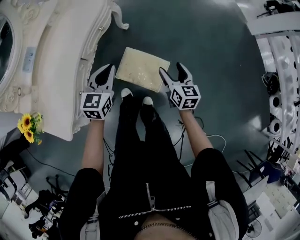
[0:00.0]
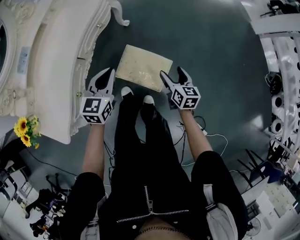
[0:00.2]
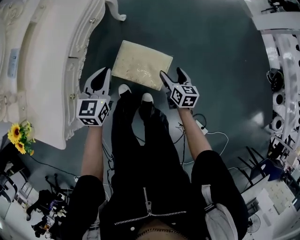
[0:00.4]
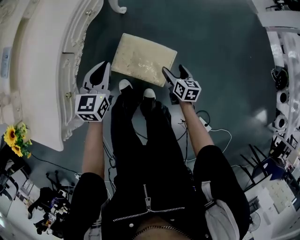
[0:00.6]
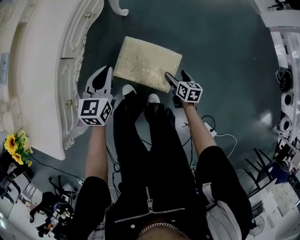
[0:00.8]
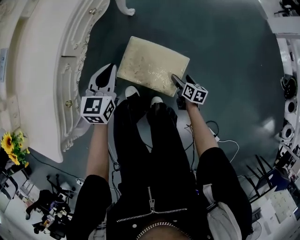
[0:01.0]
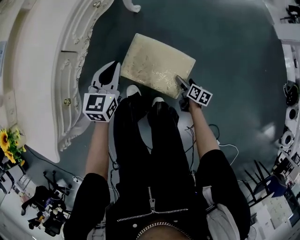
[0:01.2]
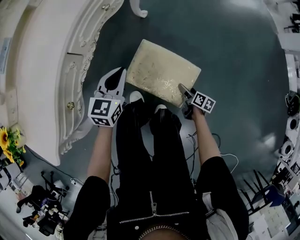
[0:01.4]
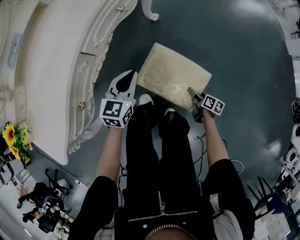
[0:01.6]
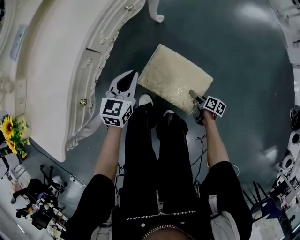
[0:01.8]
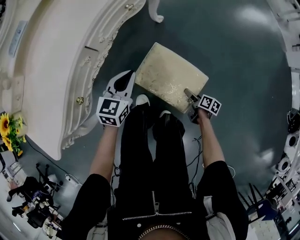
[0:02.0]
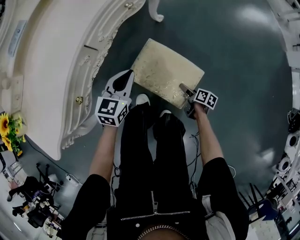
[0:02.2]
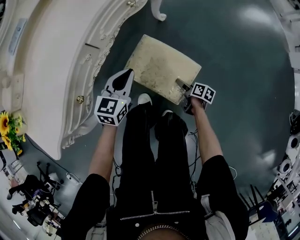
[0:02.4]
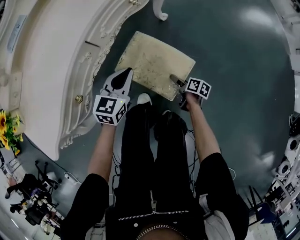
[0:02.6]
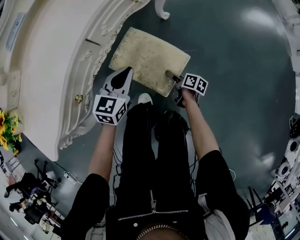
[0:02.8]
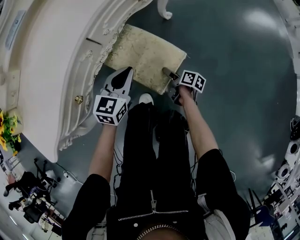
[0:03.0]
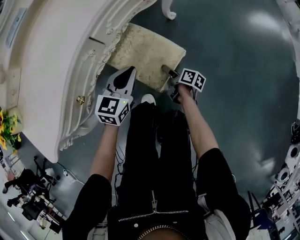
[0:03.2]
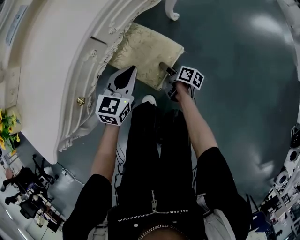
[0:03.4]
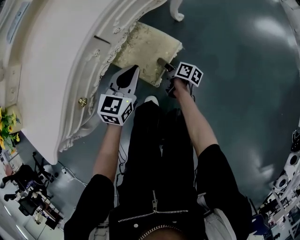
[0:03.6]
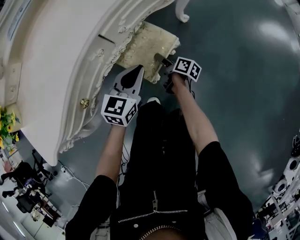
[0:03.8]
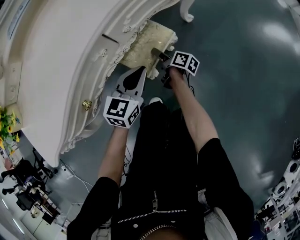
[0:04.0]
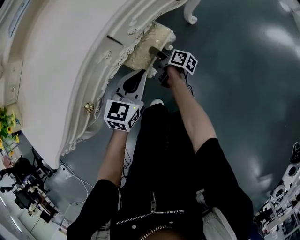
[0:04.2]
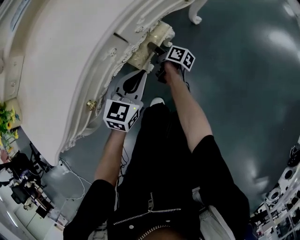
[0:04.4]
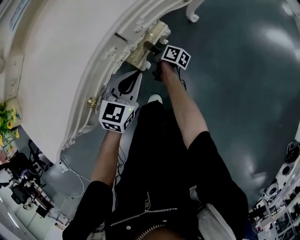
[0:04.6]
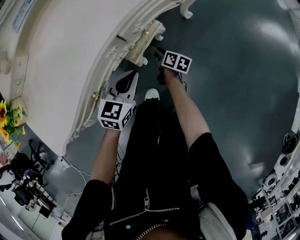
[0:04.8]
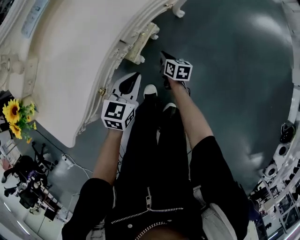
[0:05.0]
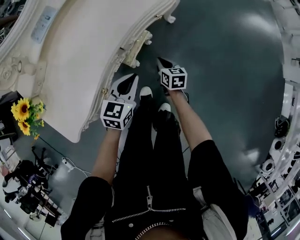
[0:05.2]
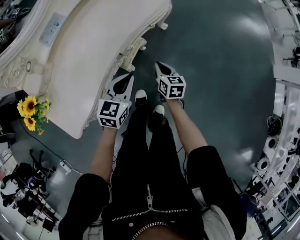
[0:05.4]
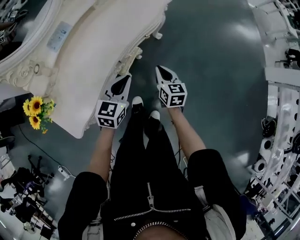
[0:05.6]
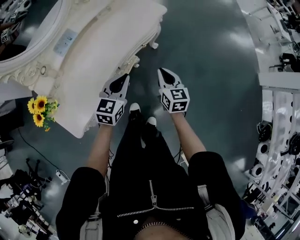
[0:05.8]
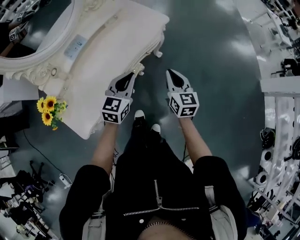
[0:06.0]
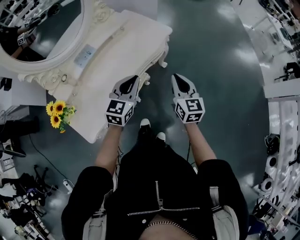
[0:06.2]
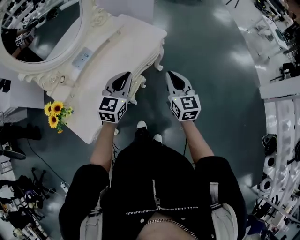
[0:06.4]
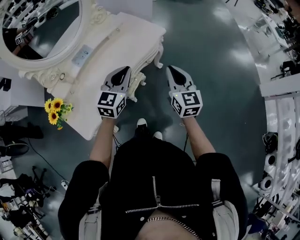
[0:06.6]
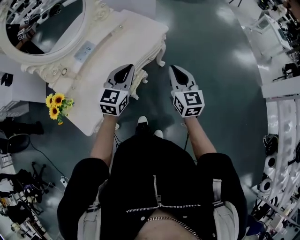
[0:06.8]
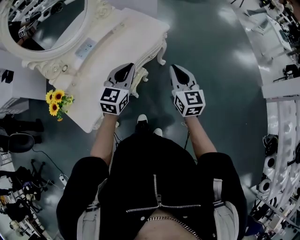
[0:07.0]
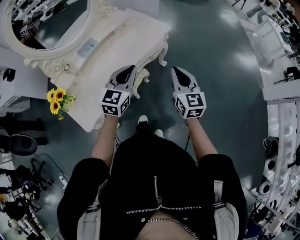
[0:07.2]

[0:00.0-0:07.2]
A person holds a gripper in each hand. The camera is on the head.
0:00.0 to 0:01.4: The right gripper heads downward, covering some 40 cm, and rotates approximately 40 degrees. Meanwhile the left gripper moves downward, about 25 cm.
0:01.4 to 0:02.8: The right gripper is displaced to the left and forward by roughly 20 cm. Meanwhile the left gripper heads to the left, covering some 5 cm.
0:02.8 to 0:04.4: The right gripper moves forward and to the left, approximately 30 cm, while the left gripper is displaced to the left by some 5 cm.
0:04.4 to 0:05.8: The grippers both shift upward by approximately 40 cm. The right gripper rotates around the line of its fingers by approximately 60 degrees, counterclockwise from behind, and closes up.
0:05.8 to 0:07.2: The grippers both shift upward by some 15 cm.

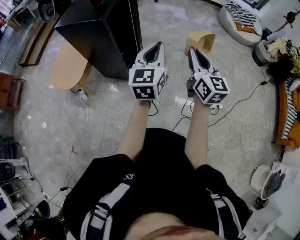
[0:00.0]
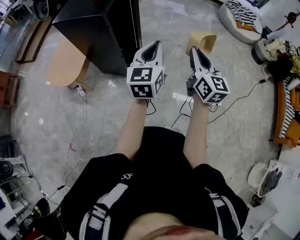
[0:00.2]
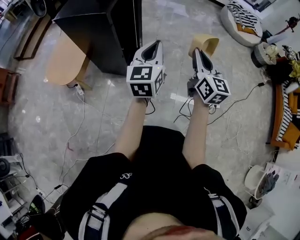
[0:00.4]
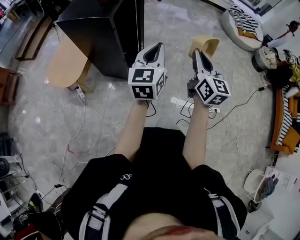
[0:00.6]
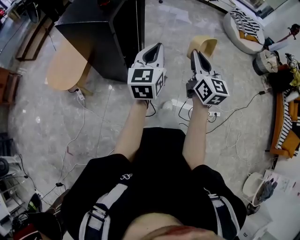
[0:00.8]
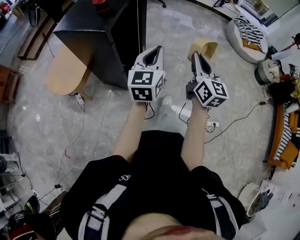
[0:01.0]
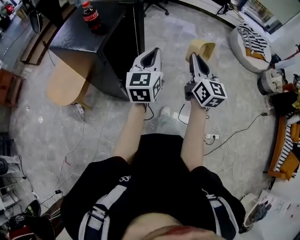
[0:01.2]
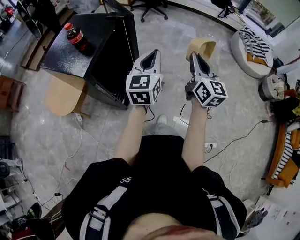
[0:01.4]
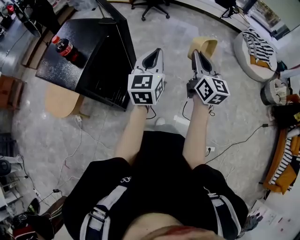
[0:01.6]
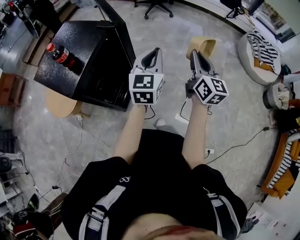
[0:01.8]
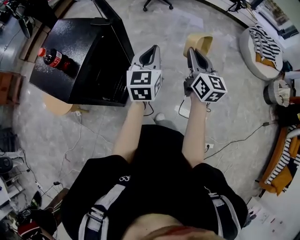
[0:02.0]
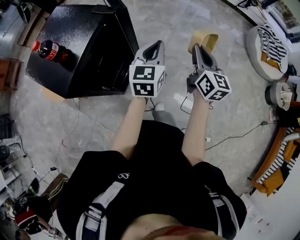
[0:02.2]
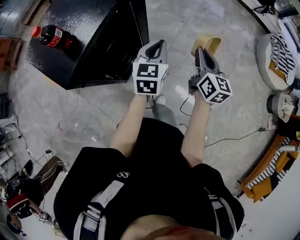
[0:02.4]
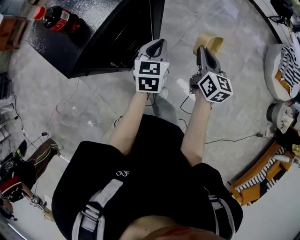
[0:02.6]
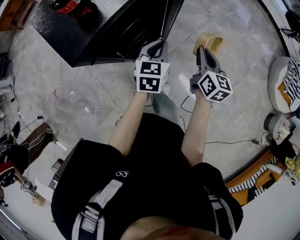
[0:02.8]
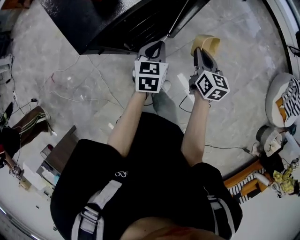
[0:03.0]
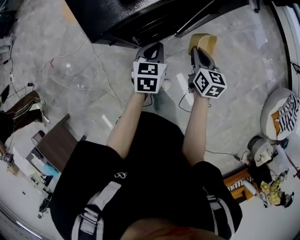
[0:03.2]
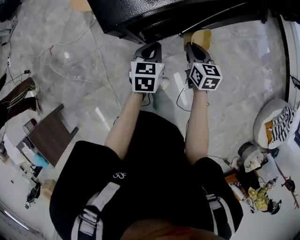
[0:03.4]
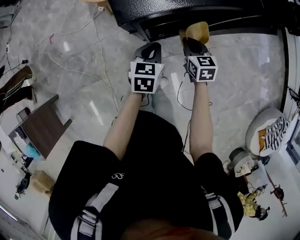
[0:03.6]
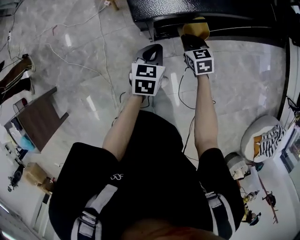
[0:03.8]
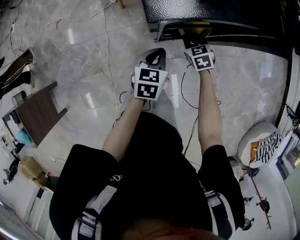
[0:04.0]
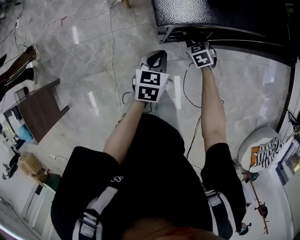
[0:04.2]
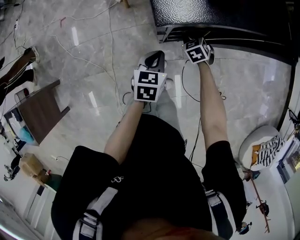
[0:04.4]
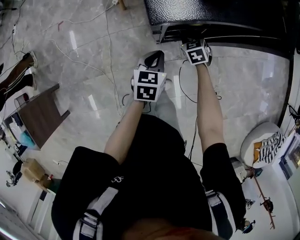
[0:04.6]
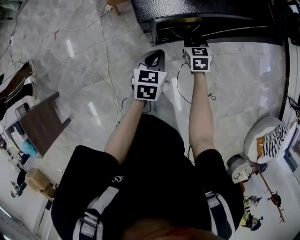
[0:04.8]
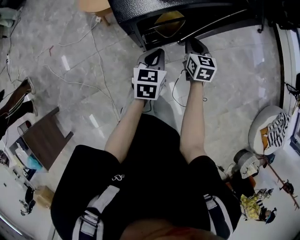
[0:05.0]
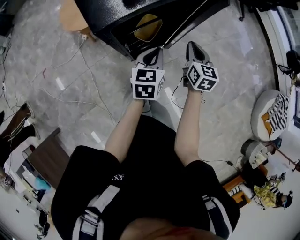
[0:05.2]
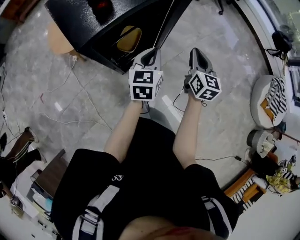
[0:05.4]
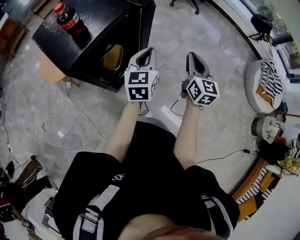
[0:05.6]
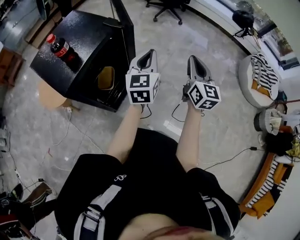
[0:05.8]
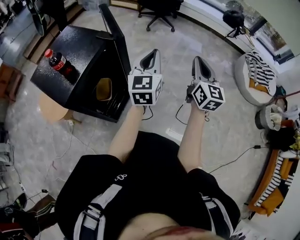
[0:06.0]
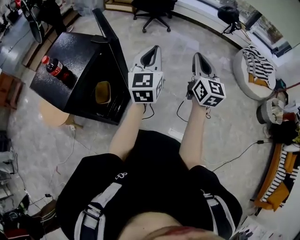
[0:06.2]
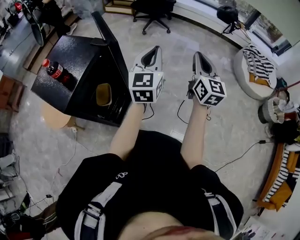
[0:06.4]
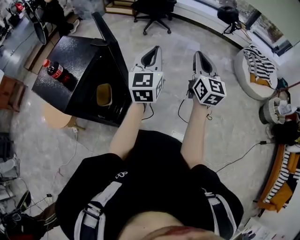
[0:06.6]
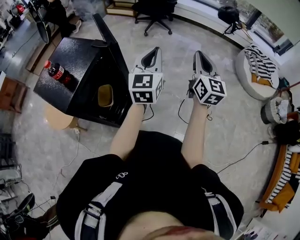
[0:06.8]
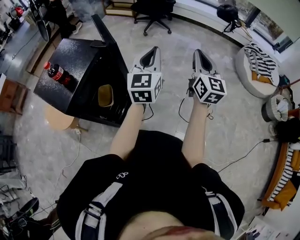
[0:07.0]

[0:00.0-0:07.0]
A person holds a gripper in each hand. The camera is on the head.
0:00.0 to 0:01.4: The grippers both shift forward by about 35 cm.
0:01.4 to 0:02.8: Both grippers move downward, forward and to the left, some 30 cm. The left gripper changes its angle by approximately 40 degrees. The right gripper rotates about 40 degrees.
0:02.8 to 0:04.2: The left gripper shifts by roughly 25 cm, and rotates some 30 degrees; the right gripper shifts by some 40 cm, and tilts its fingers some 30 degrees downward.
0:04.2 to 0:05.6: The left gripper moves roughly 35 cm, and changes its angle by some 40 degrees, while the right gripper shifts by about 50 cm, and points its fingers roughly 40 degrees further upward.
0:05.6 to 0:07.0: The right gripper heads to the right and upward, covering approximately 20 cm, and swivels some 20 degrees, while the left gripper travels upward and to the right by roughly 20 cm, and swivels some 30 degrees.

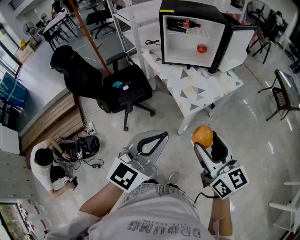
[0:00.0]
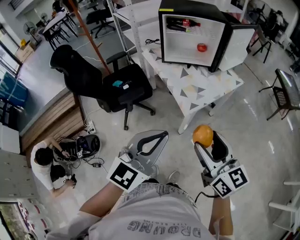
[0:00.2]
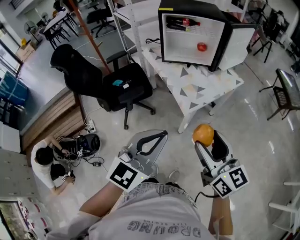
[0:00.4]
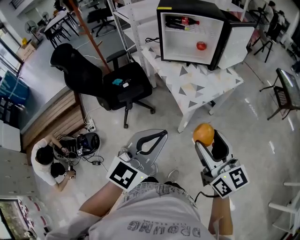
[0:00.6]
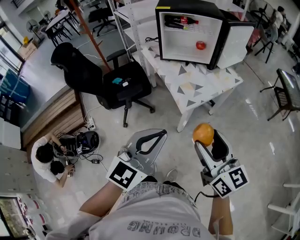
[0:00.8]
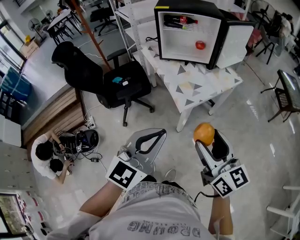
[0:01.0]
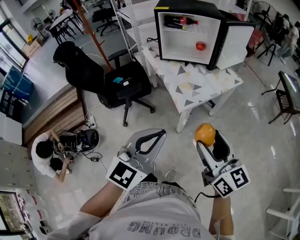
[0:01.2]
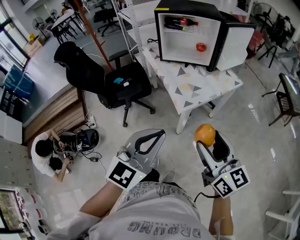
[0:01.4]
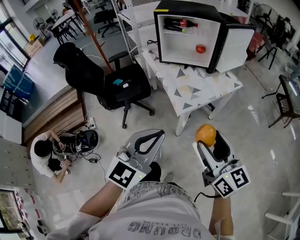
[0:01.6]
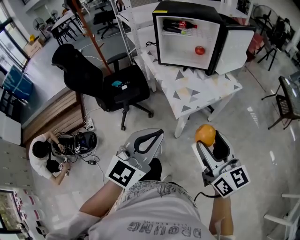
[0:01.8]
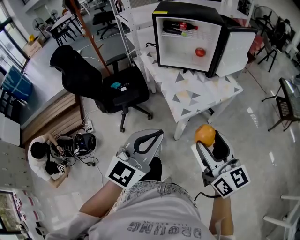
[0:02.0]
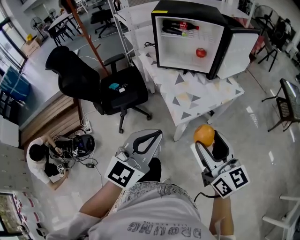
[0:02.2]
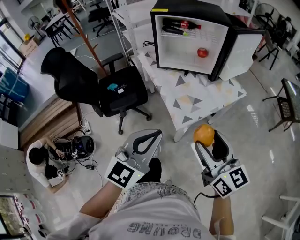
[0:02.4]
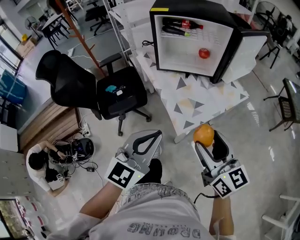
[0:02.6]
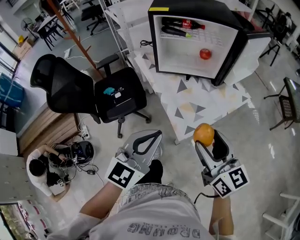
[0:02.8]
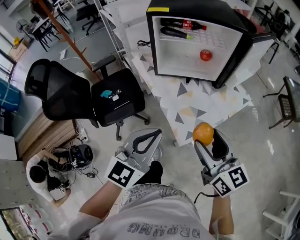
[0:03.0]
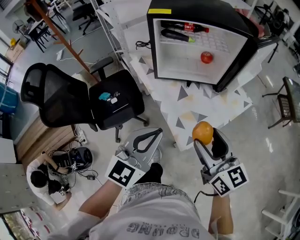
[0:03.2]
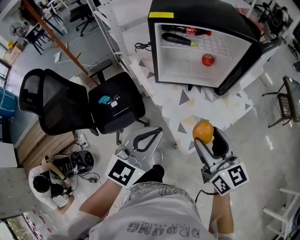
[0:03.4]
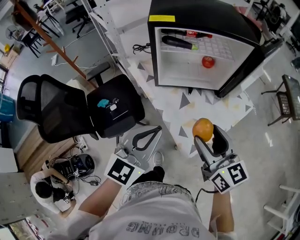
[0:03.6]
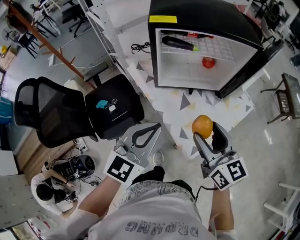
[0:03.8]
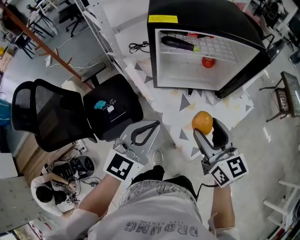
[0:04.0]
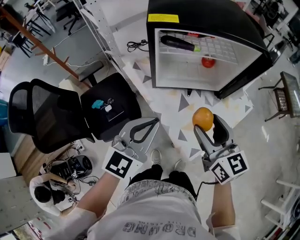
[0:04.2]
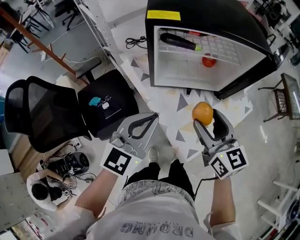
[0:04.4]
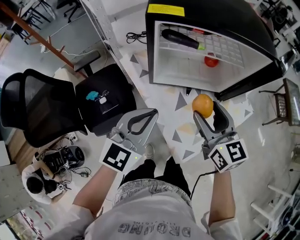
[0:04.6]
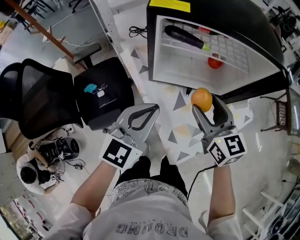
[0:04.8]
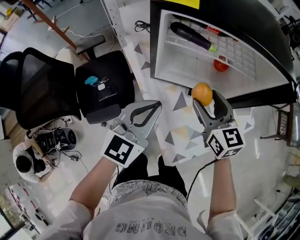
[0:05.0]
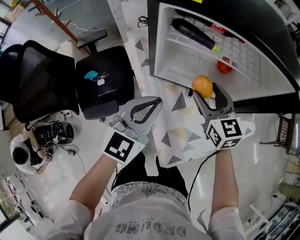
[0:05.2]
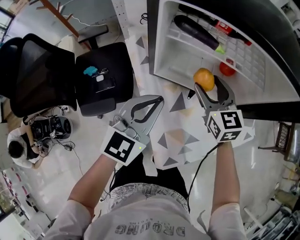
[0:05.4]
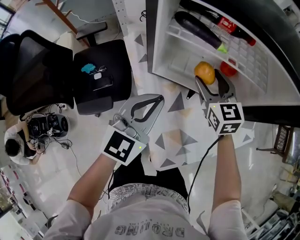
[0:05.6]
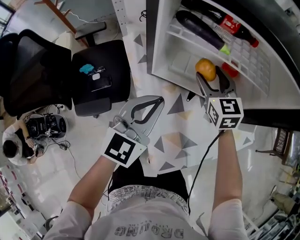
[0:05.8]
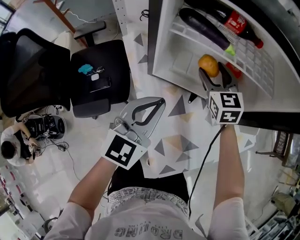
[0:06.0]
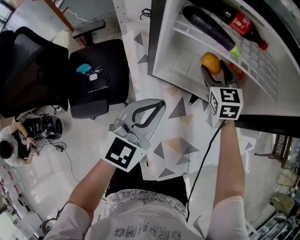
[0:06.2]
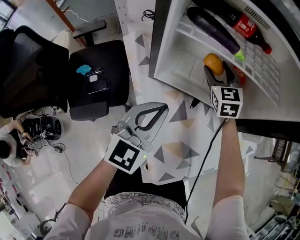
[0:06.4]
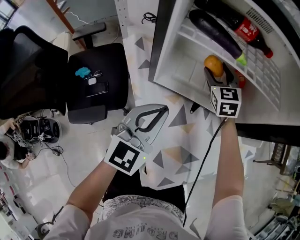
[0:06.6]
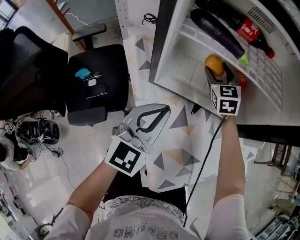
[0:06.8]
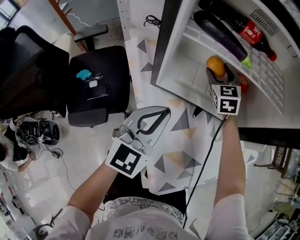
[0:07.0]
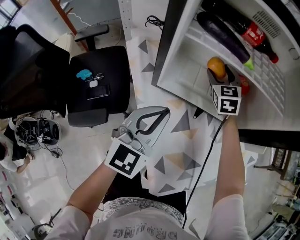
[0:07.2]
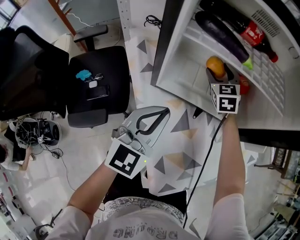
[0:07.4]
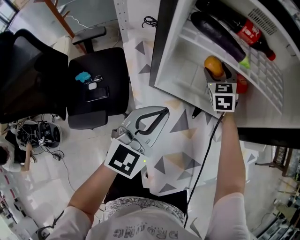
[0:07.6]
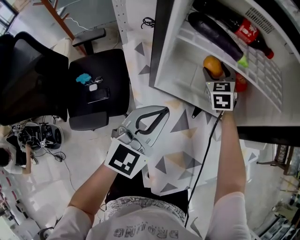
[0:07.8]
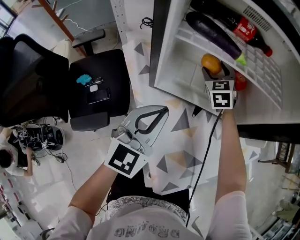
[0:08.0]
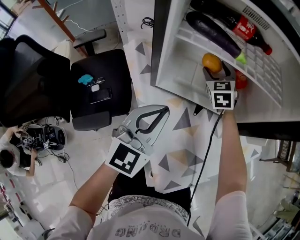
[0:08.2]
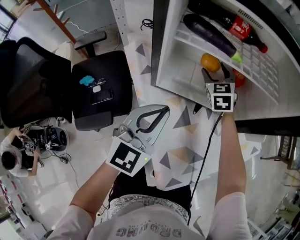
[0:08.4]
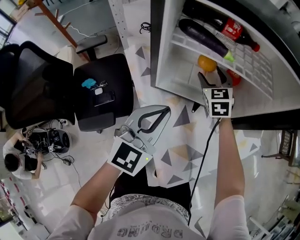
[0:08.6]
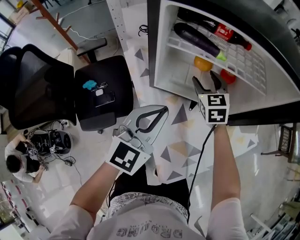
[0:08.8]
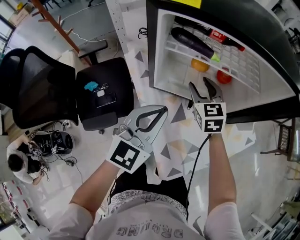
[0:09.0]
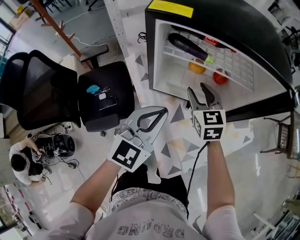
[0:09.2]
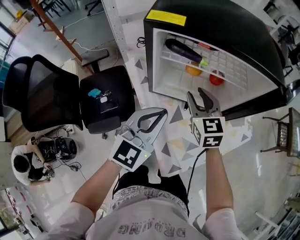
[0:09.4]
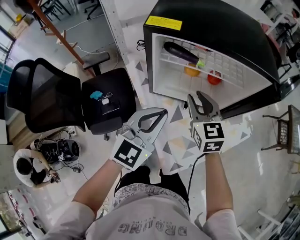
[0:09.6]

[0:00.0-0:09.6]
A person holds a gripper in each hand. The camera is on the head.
0:00.0 to 0:01.6: Both grippers move to the right, about 10 cm.
0:01.6 to 0:03.2: Both grippers travel together forward, about 30 cm.
0:03.2 to 0:04.8: The two grippers go approximately 20 cm forward.
0:04.8 to 0:06.4: The right gripper moves forward and downward, roughly 30 cm, and rotates approximately 30 degrees. Meanwhile the left gripper moves downward and forward, about 15 cm.
0:06.4 to 0:08.0: The right gripper moves some 5 cm.
0:08.0 to 0:09.6: The left gripper is displaced upward and backward by about 15 cm; the right gripper goes roughly 30 cm backward and upward, changes its angle by some 30 degrees, and closes up.
